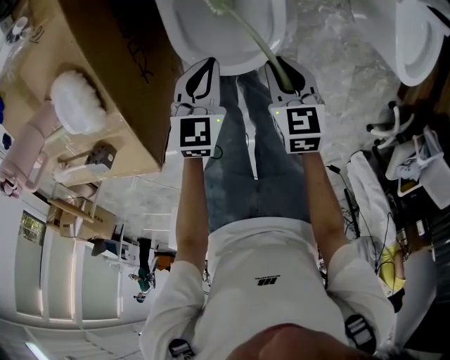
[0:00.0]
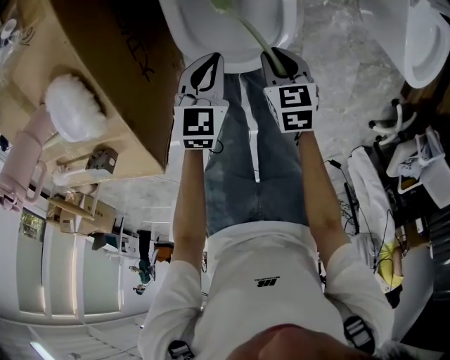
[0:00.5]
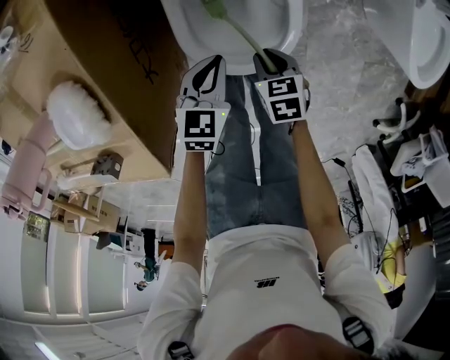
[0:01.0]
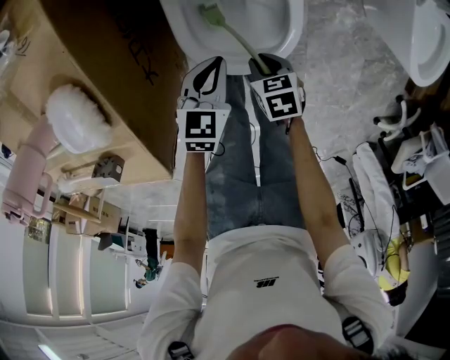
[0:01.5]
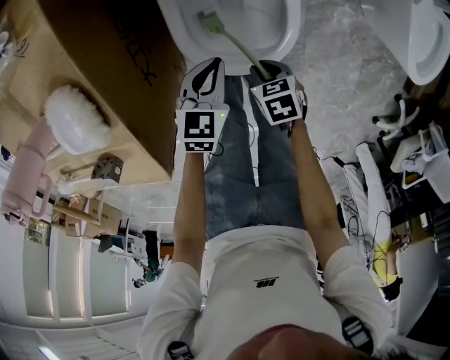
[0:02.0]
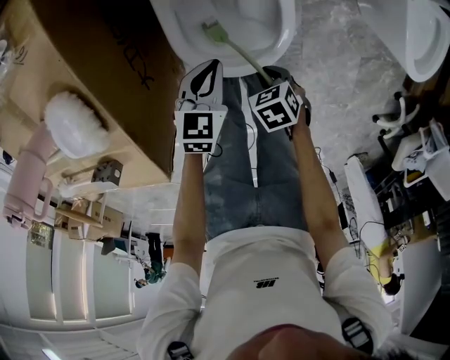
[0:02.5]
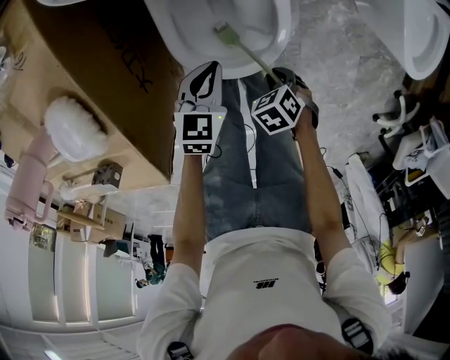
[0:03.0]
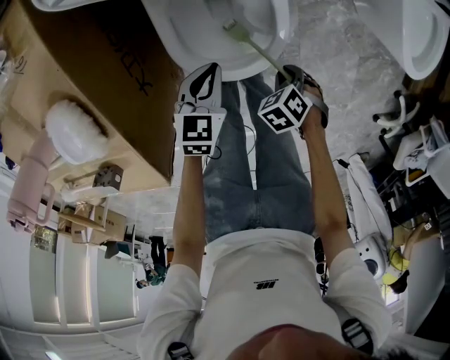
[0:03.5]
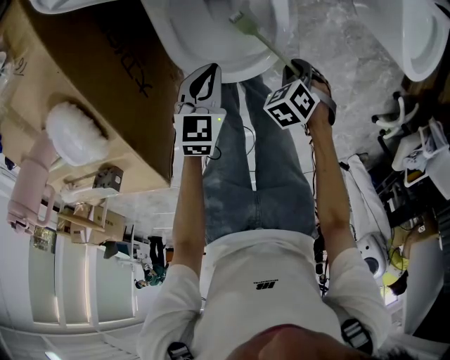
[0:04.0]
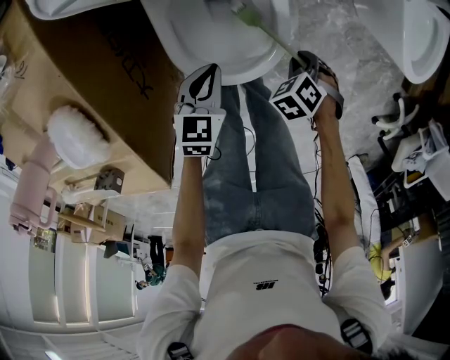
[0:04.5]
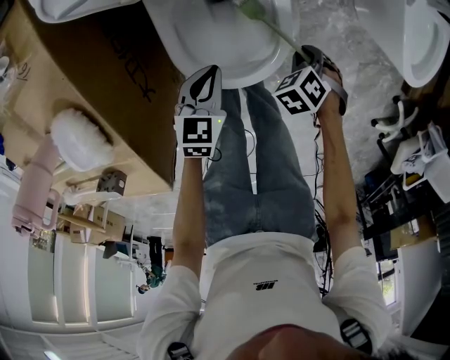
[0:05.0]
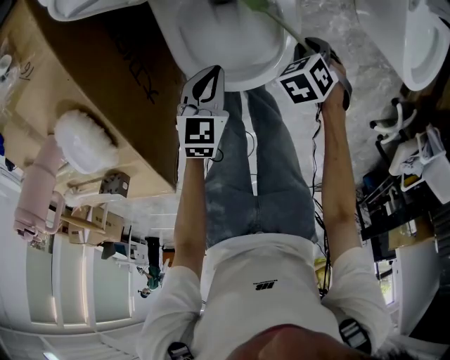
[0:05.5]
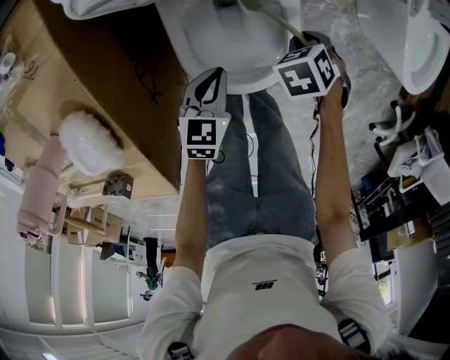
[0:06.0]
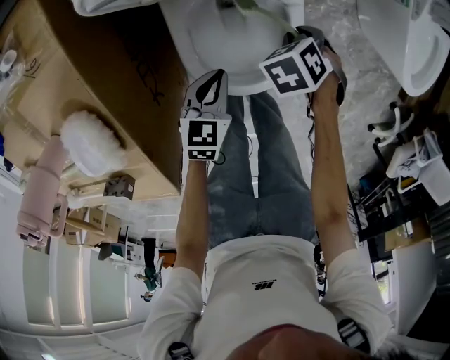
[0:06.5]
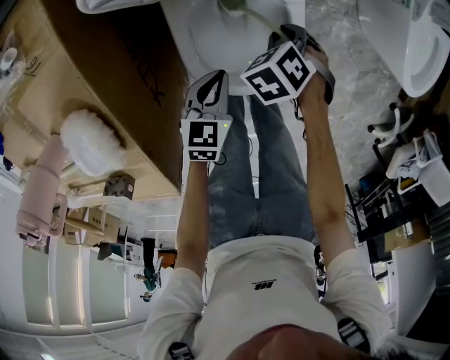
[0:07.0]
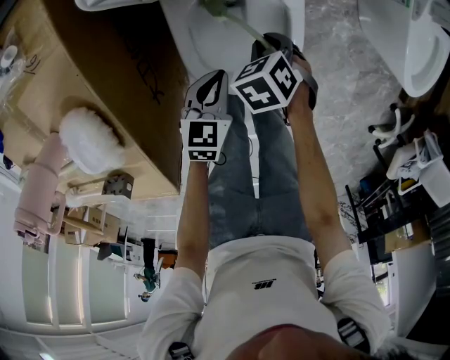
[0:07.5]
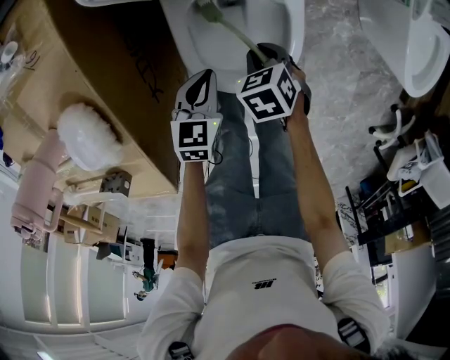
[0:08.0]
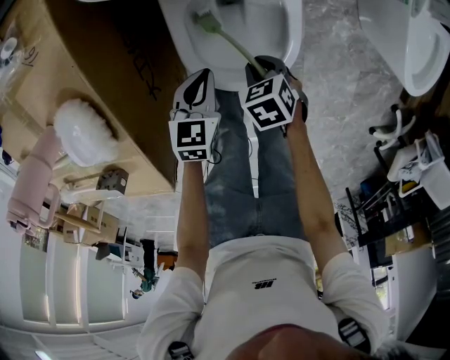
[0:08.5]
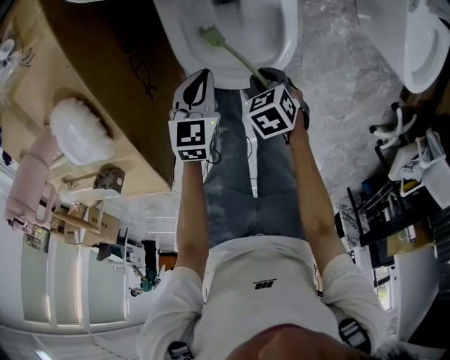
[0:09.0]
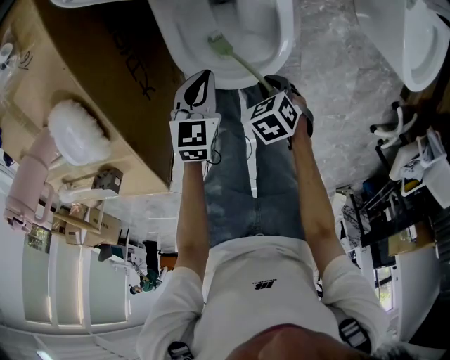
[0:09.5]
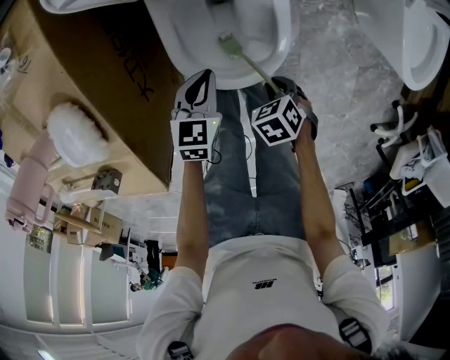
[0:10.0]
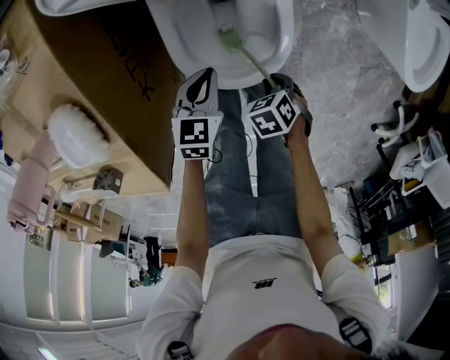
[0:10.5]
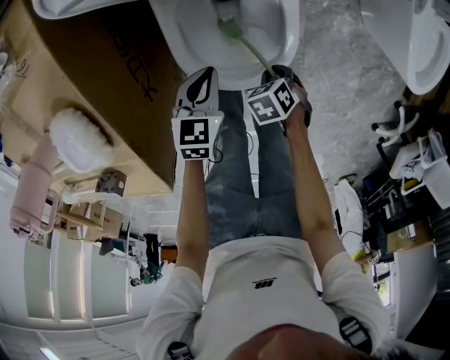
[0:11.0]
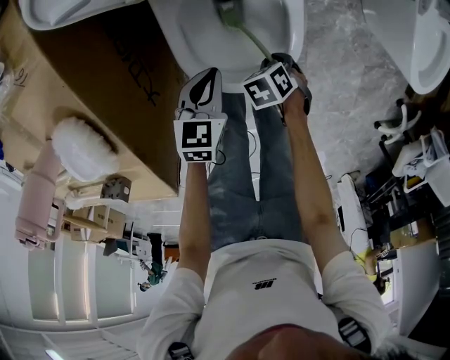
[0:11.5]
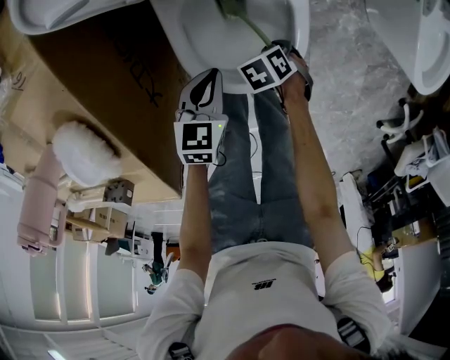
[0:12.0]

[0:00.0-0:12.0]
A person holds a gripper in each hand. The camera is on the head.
0:00.0 to 0:02.0: The left gripper travels downward by some 5 cm; the right gripper travels downward, to the left and backward by approximately 15 cm, and turns by about 30 degrees.
0:02.0 to 0:04.0: The right gripper moves roughly 10 cm, and rotates approximately 40 degrees.
0:04.0 to 0:06.0: The right gripper shifts by roughly 15 cm.
0:06.0 to 0:08.0: The right gripper ends up roughly 10 cm from where it was.
0:08.0 to 0:10.0: The right gripper moves approximately 15 cm.
0:10.0 to 0:12.0: The right gripper heads downward, covering about 10 cm.

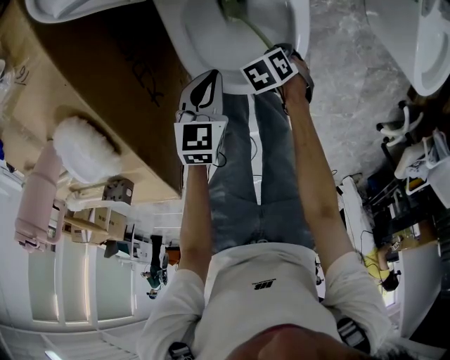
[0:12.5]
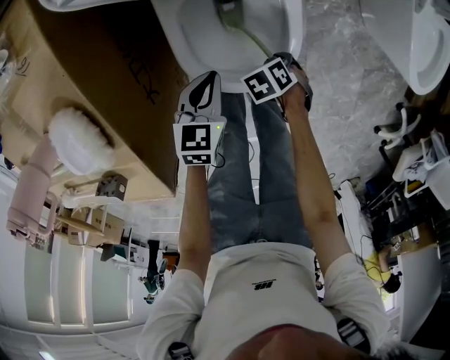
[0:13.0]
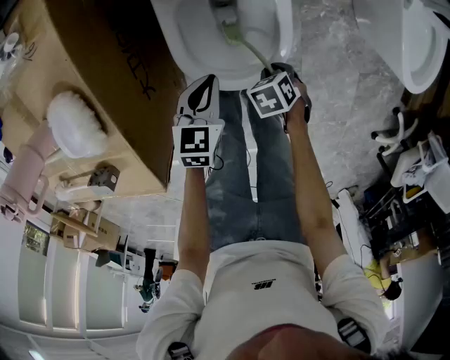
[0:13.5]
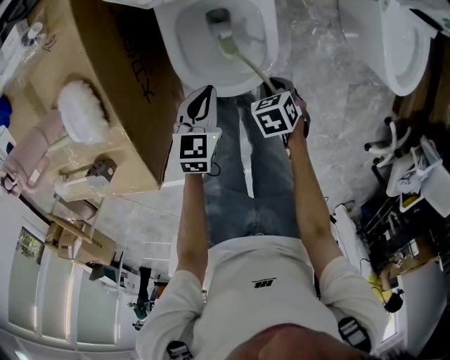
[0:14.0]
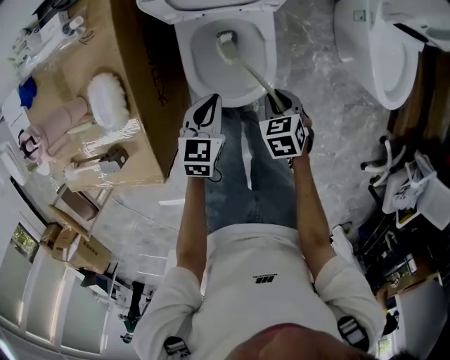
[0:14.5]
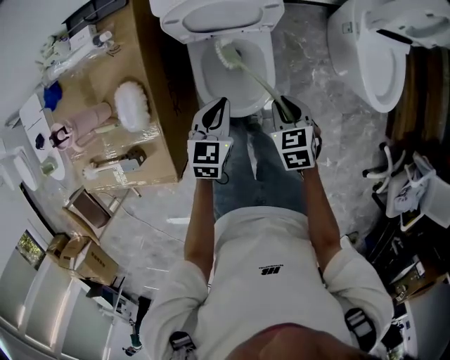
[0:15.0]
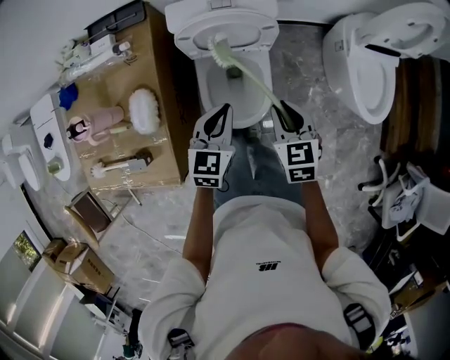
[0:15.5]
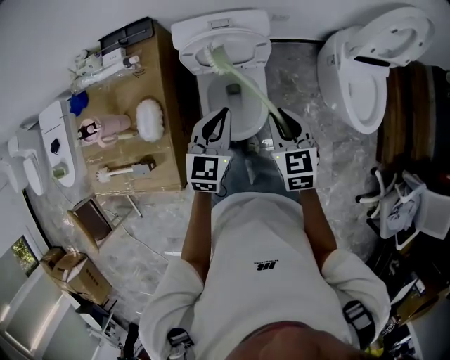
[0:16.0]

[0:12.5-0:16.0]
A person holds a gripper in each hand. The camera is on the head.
0:12.5 to 0:14.5: Both grippers travel together upward, roughly 20 cm. The right gripper turns by some 30 degrees.
0:14.5 to 0:16.0: Both grippers move upward, about 30 cm. The right gripper angles its fingers upward, by roughly 30 degrees.

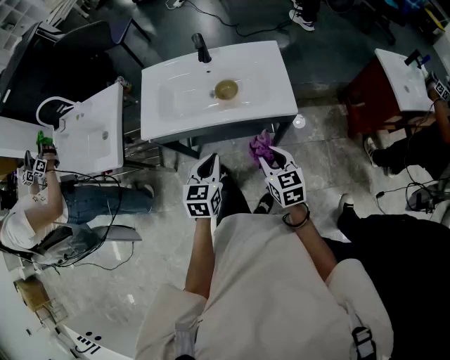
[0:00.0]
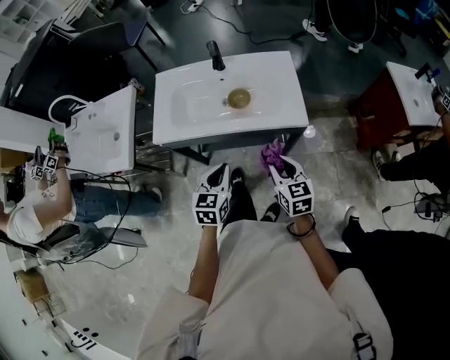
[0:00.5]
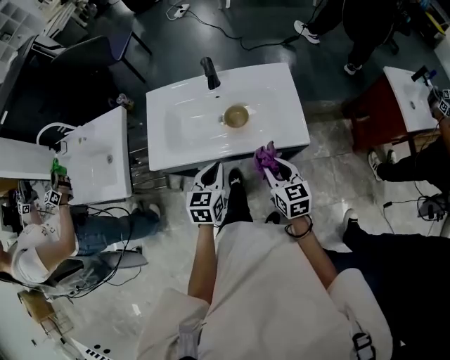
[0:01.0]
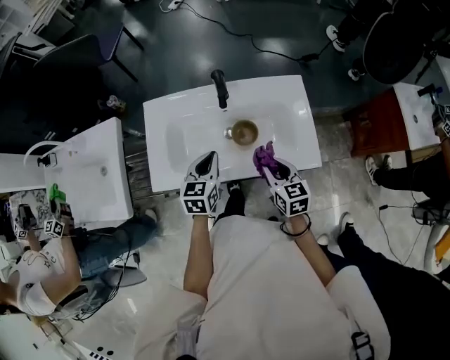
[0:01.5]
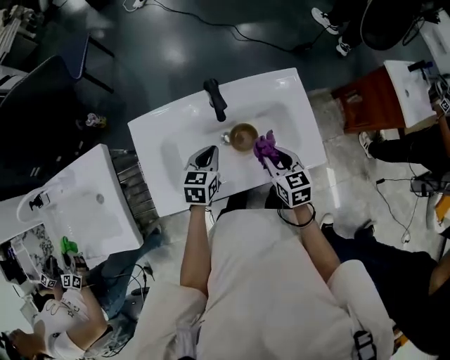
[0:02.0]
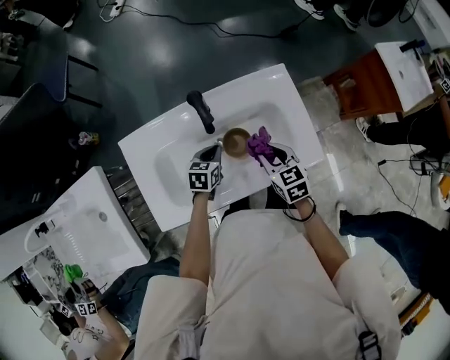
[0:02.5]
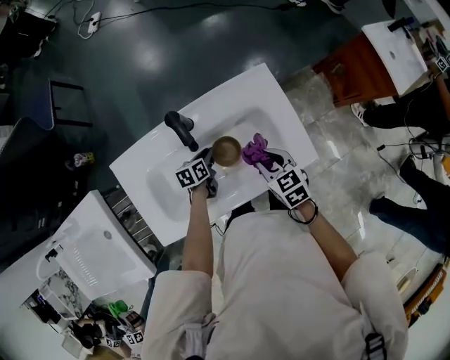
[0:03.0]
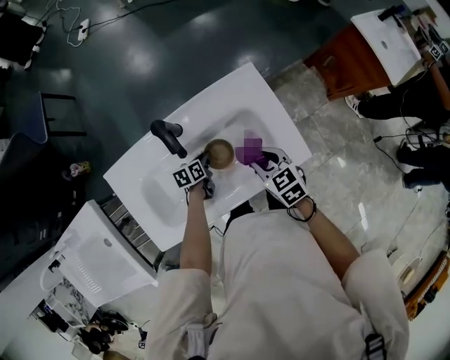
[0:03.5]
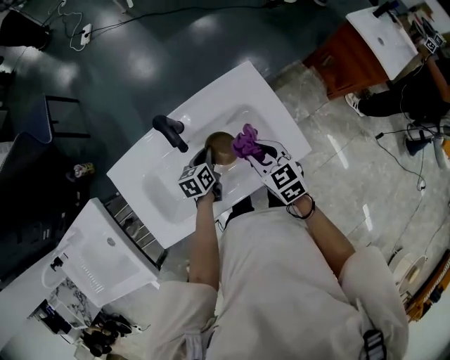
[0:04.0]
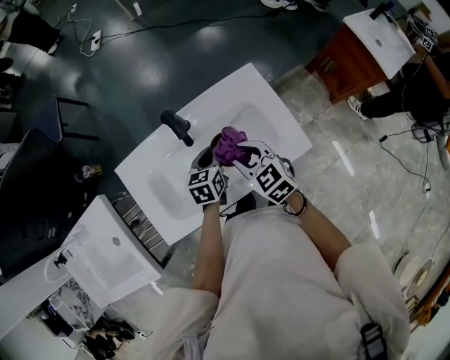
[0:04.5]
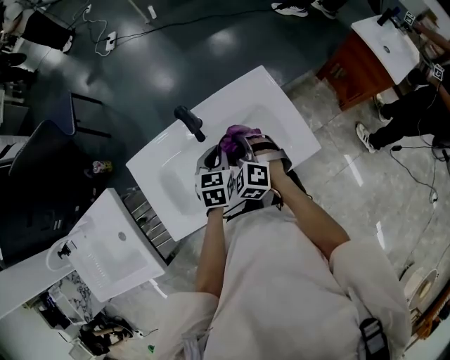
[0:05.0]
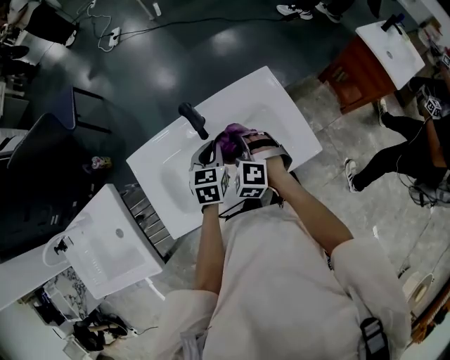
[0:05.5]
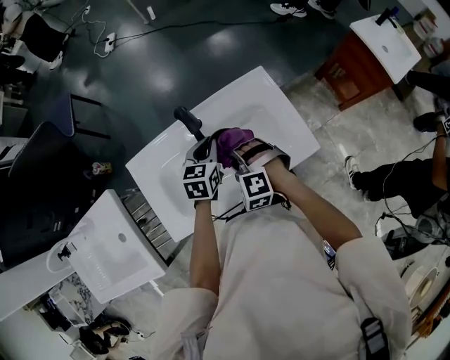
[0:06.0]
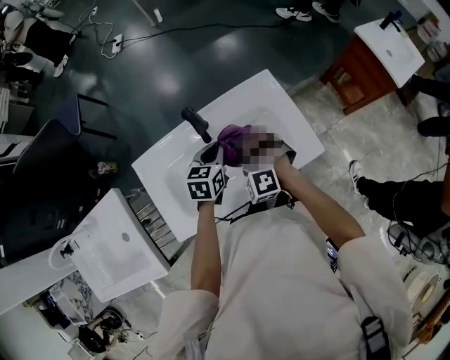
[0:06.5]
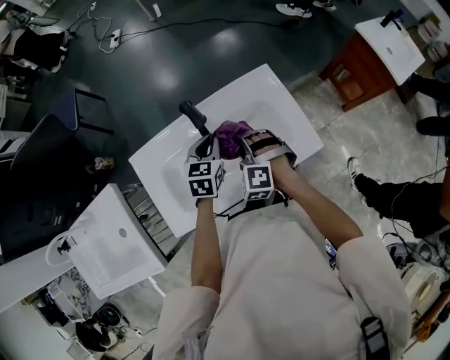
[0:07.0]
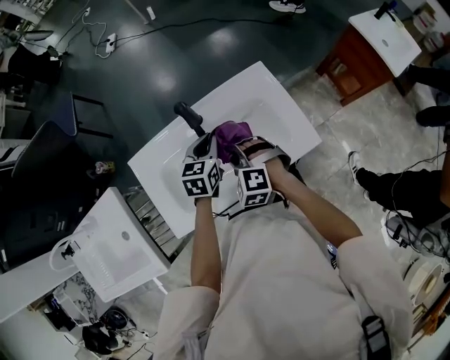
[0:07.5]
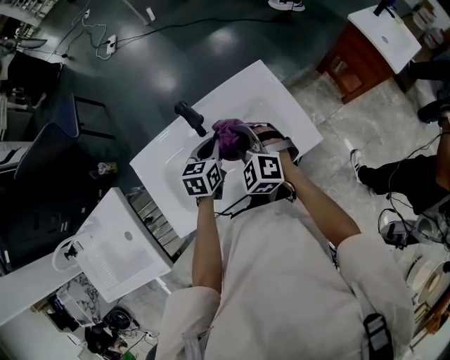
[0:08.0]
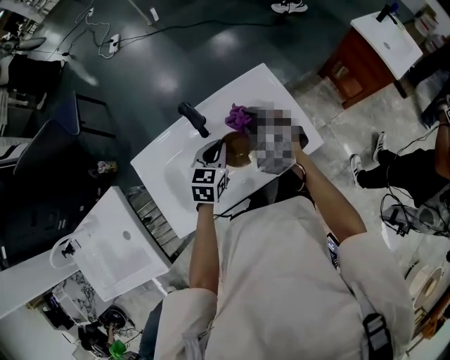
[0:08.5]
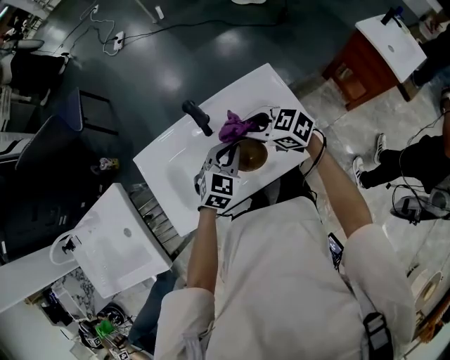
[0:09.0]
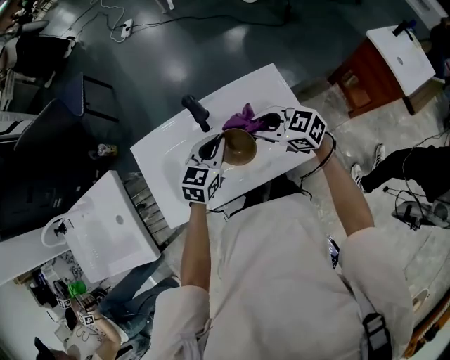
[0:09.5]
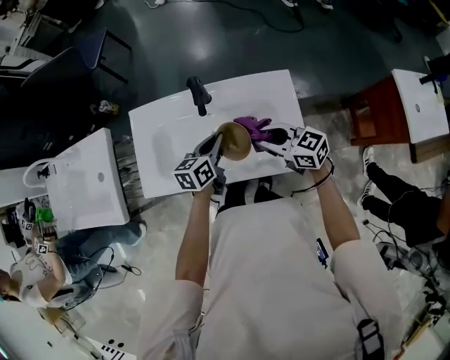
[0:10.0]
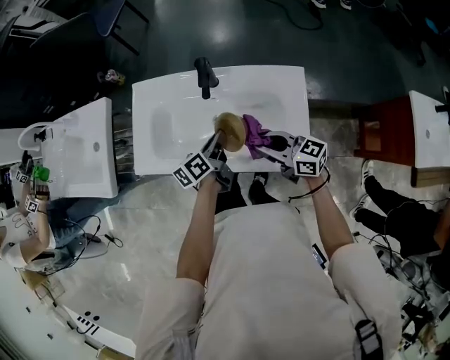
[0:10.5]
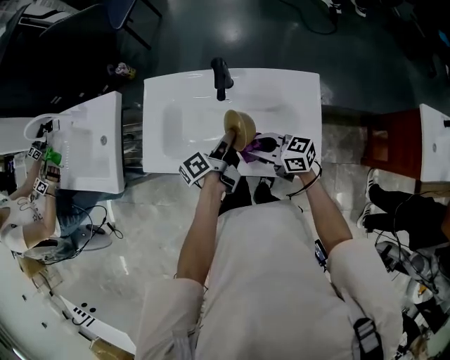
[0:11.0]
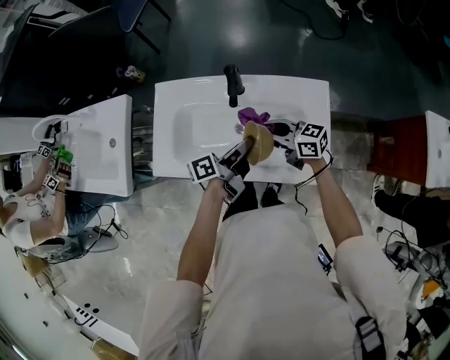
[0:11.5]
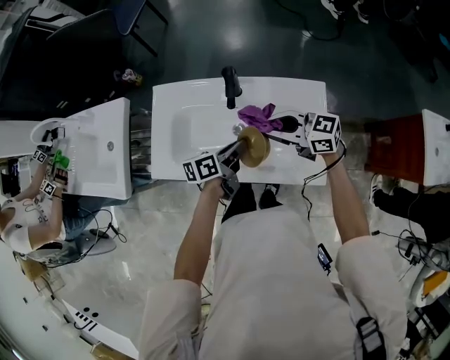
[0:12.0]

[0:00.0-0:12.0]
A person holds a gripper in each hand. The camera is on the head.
0:00.0 to 0:02.0: The grippers both shift forward by some 25 cm.
0:02.0 to 0:04.0: The left gripper goes approximately 10 cm downward and to the right.
0:04.0 to 0:06.0: The right gripper travels to the left by roughly 15 cm, and rolls counterclockwise, seen from behind, by some 60 degrees, while the left gripper travels upward by approximately 15 cm, and swivels some 30 degrees.
0:06.0 to 0:08.0: The right gripper moves upward, roughly 5 cm, and changes its angle by some 30 degrees.
0:08.0 to 0:10.0: The right gripper shifts by some 10 cm, and changes its angle by some 70 degrees. Meanwhile the left gripper rotates roughly 30 degrees.
0:10.0 to 0:12.0: The right gripper travels forward by approximately 5 cm, and swivels about 20 degrees, while the left gripper changes its angle by some 30 degrees.
